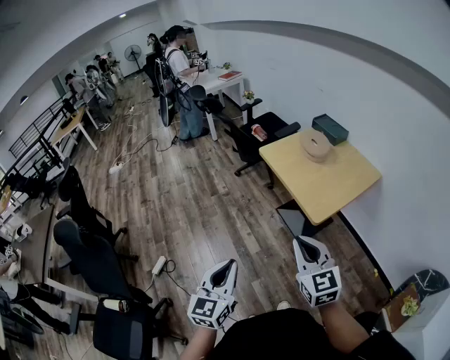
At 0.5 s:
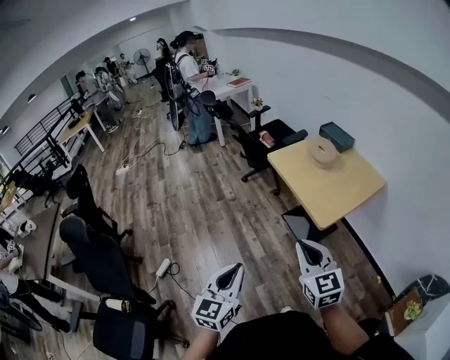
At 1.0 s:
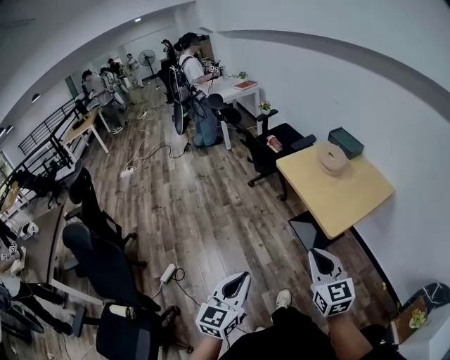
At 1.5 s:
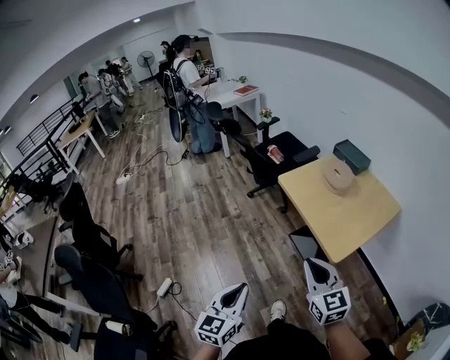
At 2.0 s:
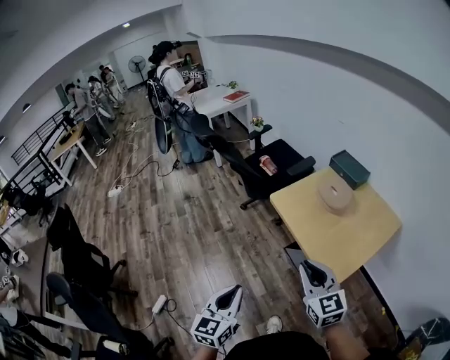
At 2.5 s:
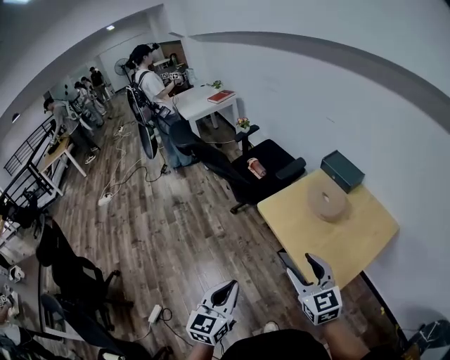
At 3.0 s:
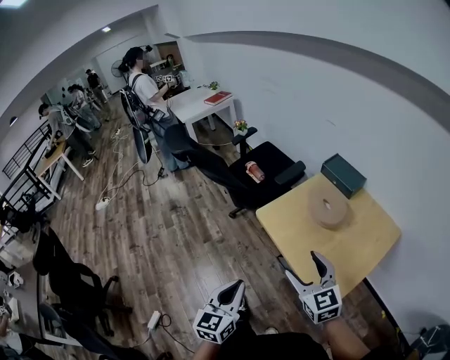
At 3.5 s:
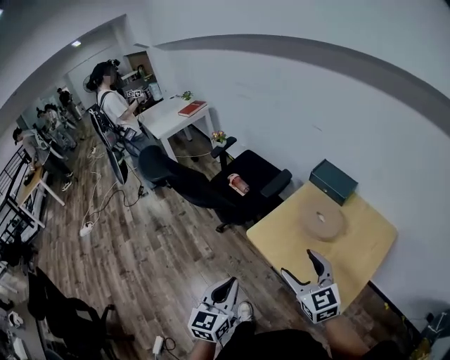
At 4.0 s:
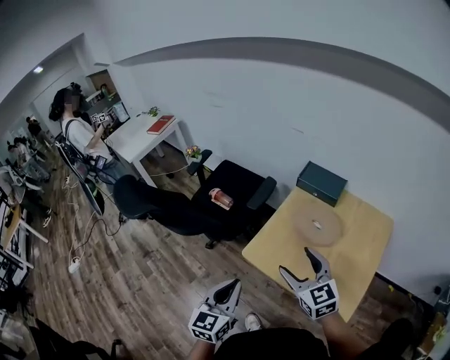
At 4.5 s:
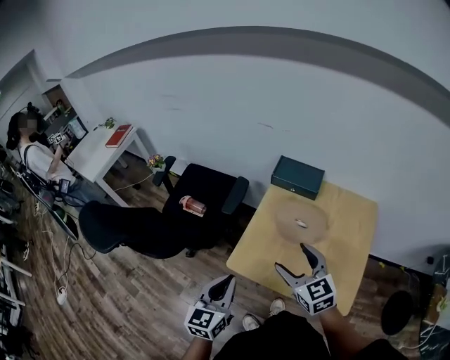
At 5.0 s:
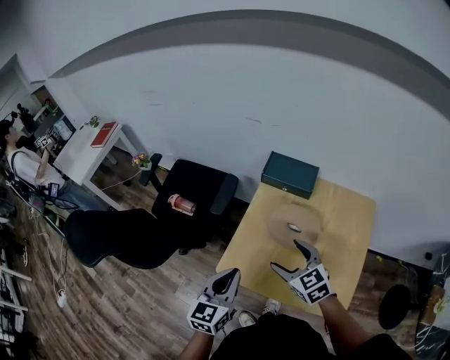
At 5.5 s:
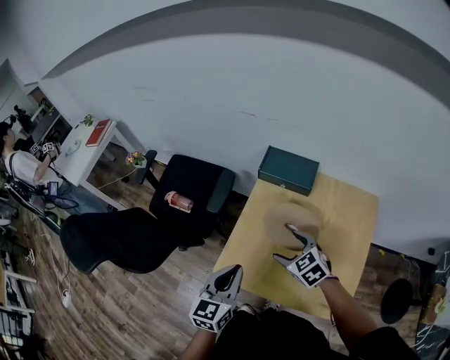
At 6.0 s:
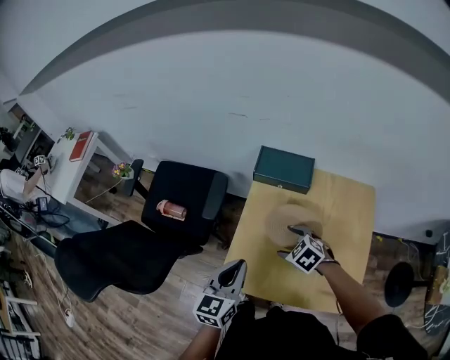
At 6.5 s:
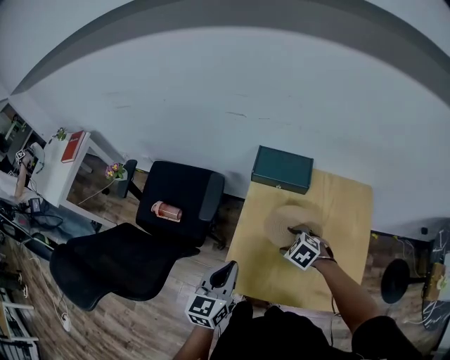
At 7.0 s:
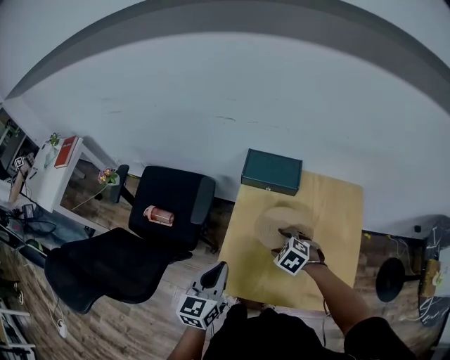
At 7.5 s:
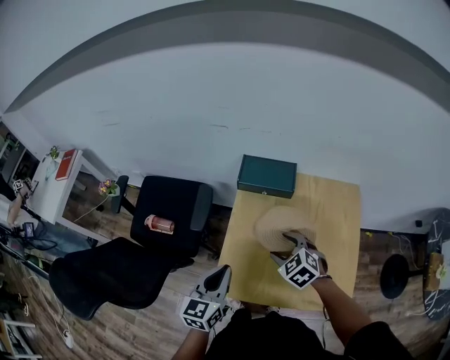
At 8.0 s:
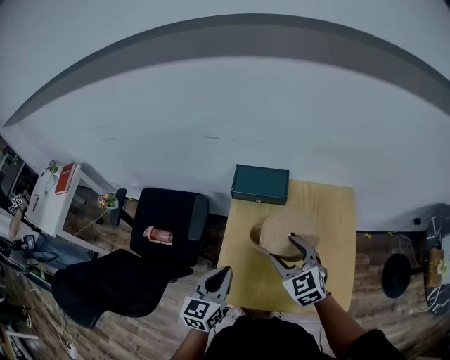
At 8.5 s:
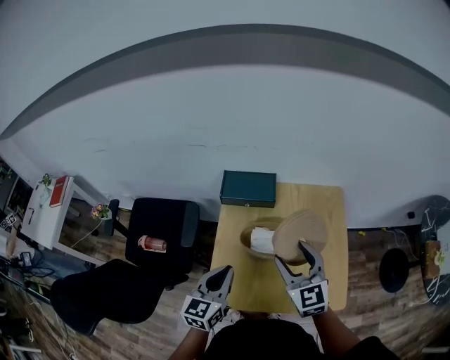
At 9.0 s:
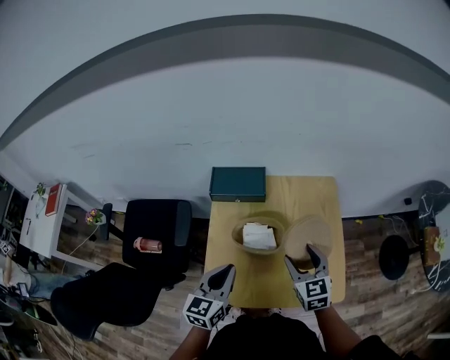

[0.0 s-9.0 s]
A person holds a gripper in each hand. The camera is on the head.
0.0 to 2.0 s: Both grippers travel together forward, about 25 cm.
2.0 to 4.5 s: The left gripper shifts by some 50 cm, and turns by approximately 40 degrees; the right gripper shifts by about 40 cm, rotates approximately 30 degrees, and opens.
4.5 to 7.0 s: The left gripper is displaced forward by about 15 cm. The right gripper is displaced downward and forward by some 25 cm, and tilts its fingers approximately 50 degrees downward.
7.0 to 9.0 s: The right gripper heads to the right and upward, covering some 20 cm, and points its fingers about 40 degrees further upward; the left gripper shifts approximately 10 cm to the right.

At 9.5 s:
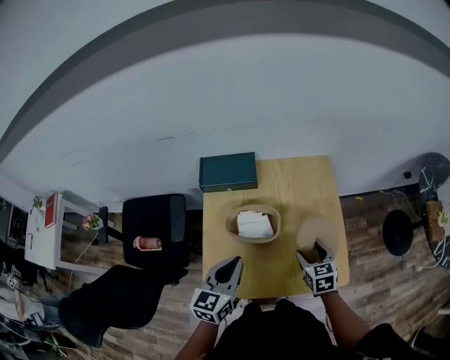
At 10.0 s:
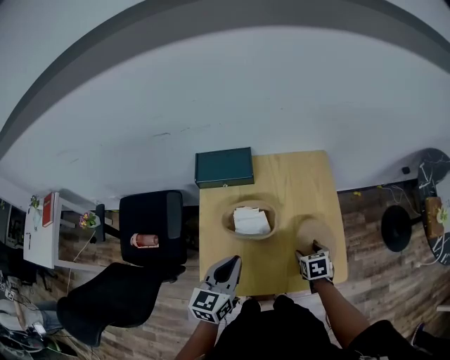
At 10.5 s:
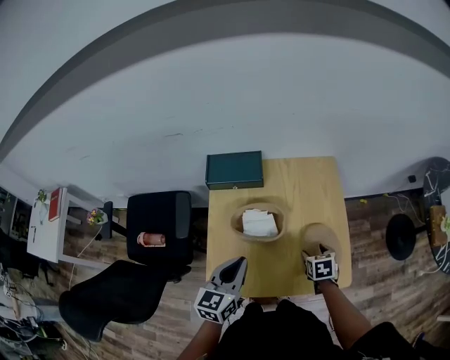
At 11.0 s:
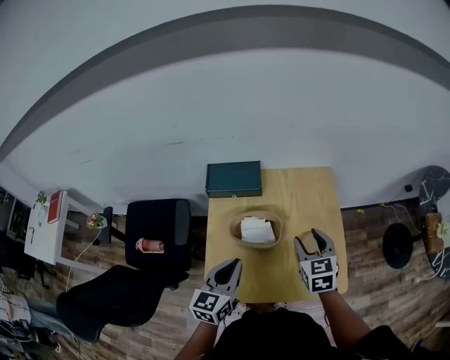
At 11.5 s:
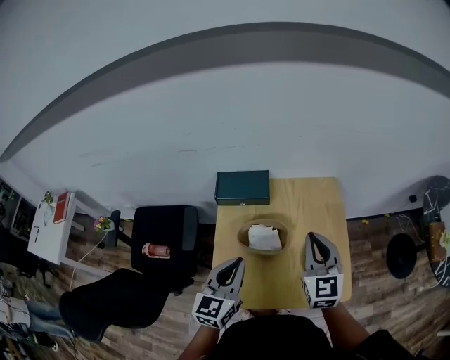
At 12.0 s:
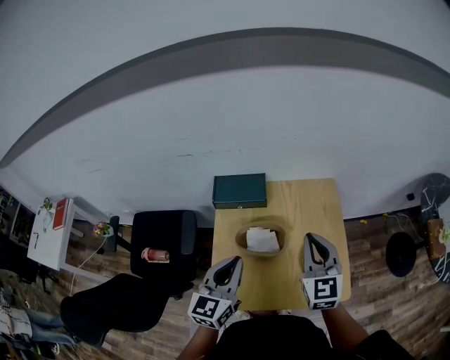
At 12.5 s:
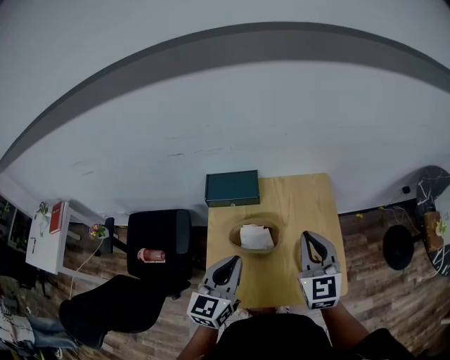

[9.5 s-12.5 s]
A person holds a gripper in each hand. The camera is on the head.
9.5 to 11.0 s: The right gripper moves upward, approximately 10 cm.
11.0 to 12.5 s: The left gripper shifts about 10 cm upward; the right gripper heads upward, covering some 10 cm, turns by roughly 20 degrees, and closes.

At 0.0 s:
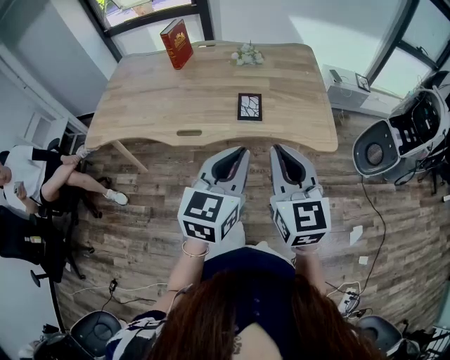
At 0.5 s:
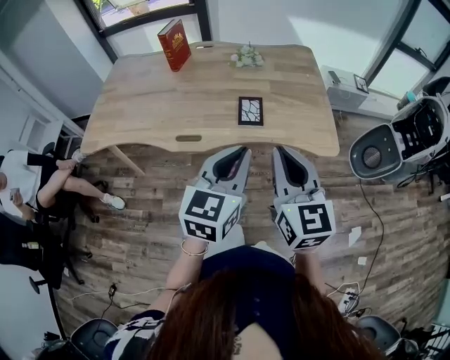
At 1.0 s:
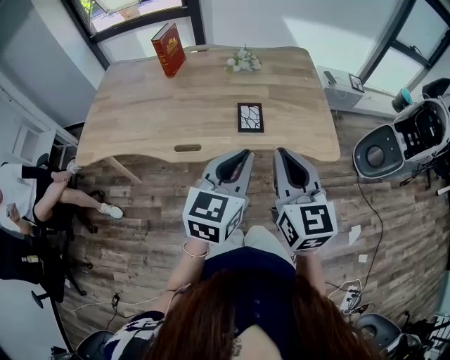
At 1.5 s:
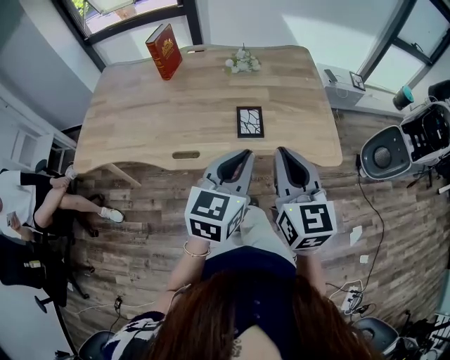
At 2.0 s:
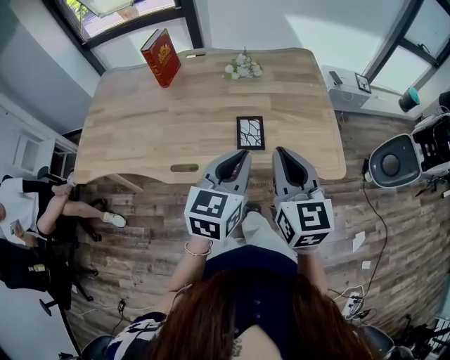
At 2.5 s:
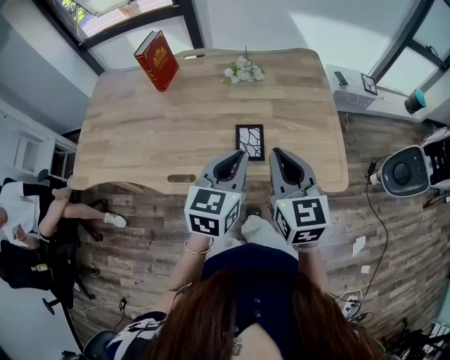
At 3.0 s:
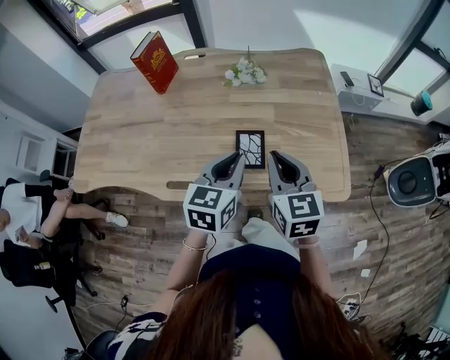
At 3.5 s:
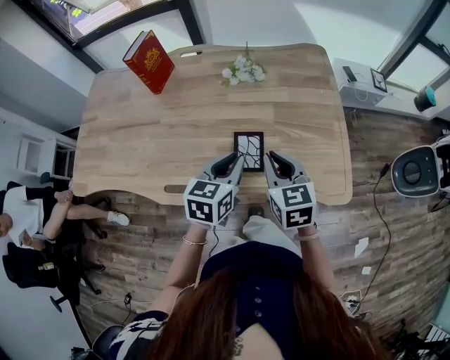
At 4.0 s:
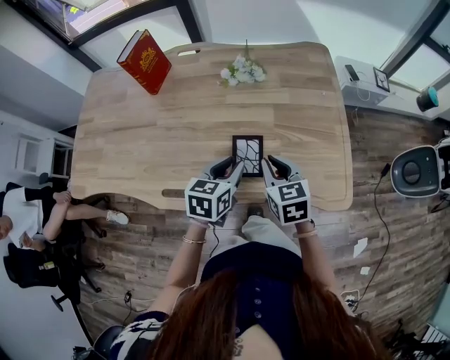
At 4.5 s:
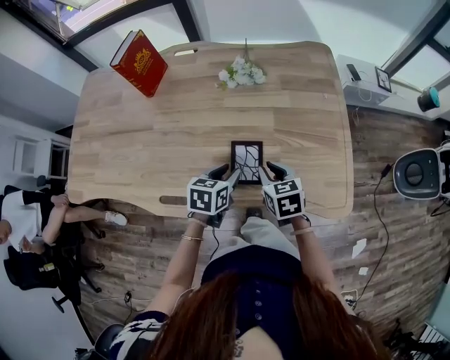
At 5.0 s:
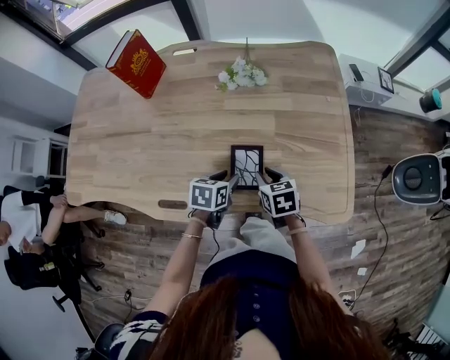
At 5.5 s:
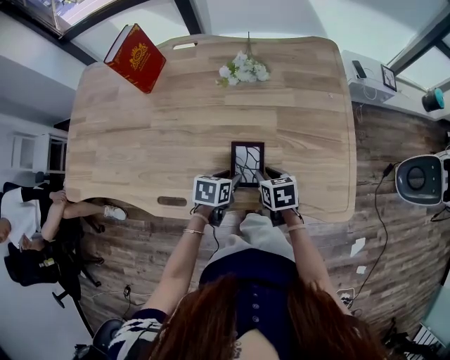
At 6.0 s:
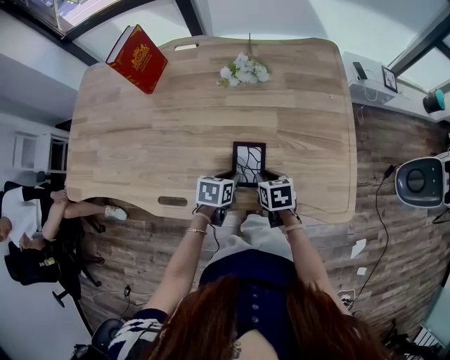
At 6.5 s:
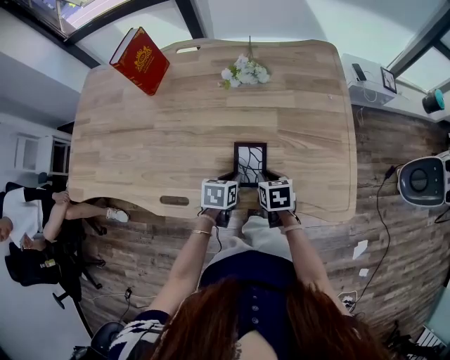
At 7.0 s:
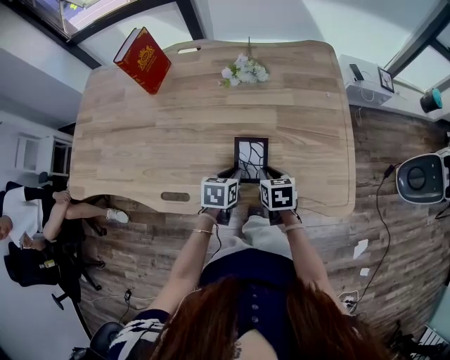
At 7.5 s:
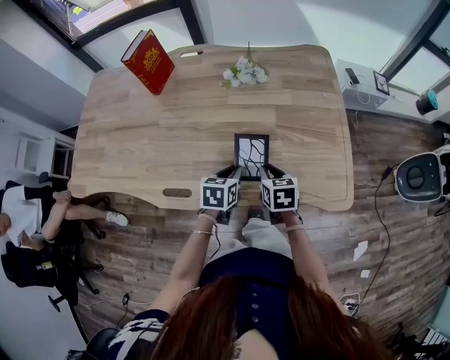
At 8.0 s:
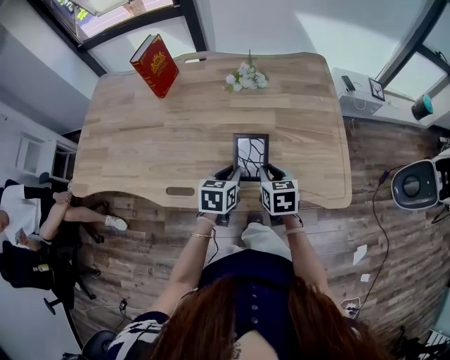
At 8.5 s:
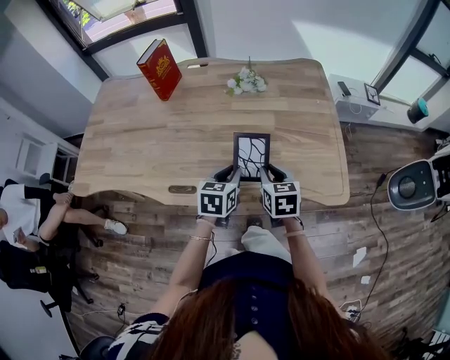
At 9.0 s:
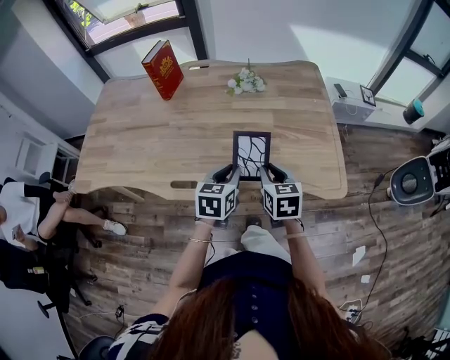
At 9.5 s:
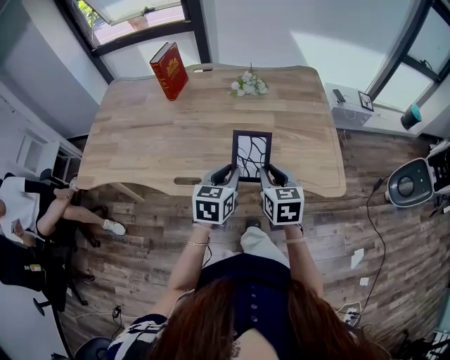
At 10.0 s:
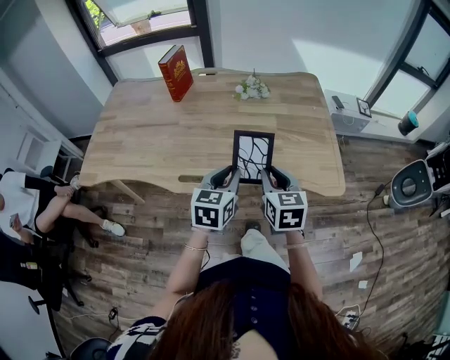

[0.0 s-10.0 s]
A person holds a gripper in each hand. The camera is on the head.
0.0 to 2.0 s: Both grippers travel together forward, roughly 15 cm.
2.0 to 4.0 s: The grippers both shift downward and forward by roughly 25 cm. The left gripper swivels approximately 20 degrees; the right gripper swivels roughly 30 degrees.
4.0 to 6.0 s: Both grippers move downward, about 15 cm. The right gripper turns by some 30 degrees; the left gripper turns by approximately 20 degrees.
6.0 to 8.0 s: The two grippers go some 10 cm upward.
8.0 to 10.0 s: The two grippers go approximately 20 cm upward and backward.

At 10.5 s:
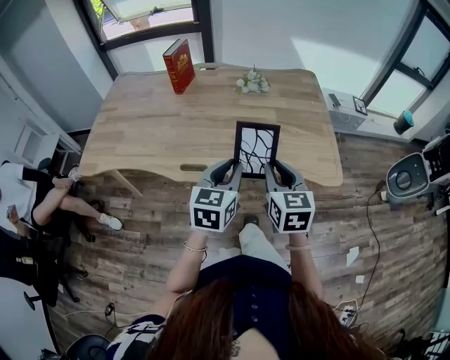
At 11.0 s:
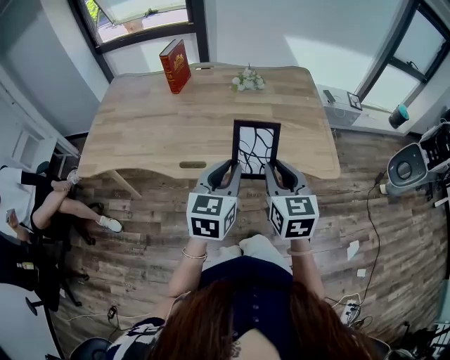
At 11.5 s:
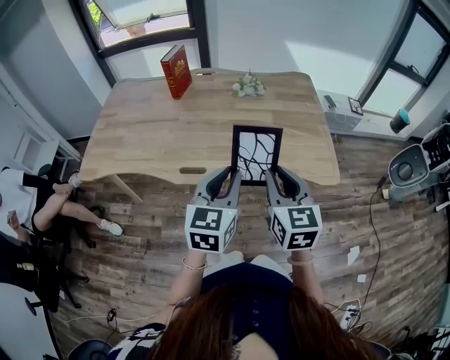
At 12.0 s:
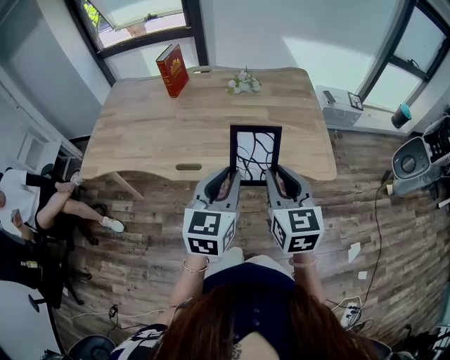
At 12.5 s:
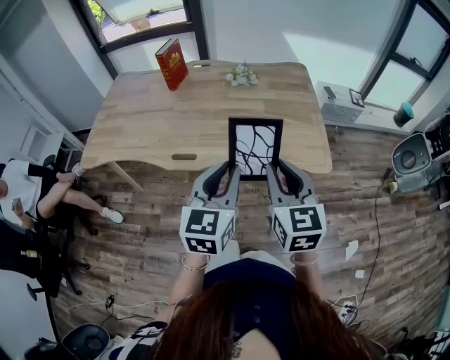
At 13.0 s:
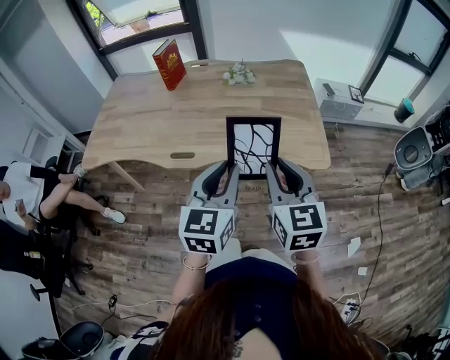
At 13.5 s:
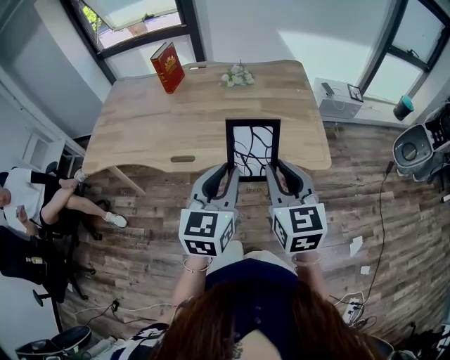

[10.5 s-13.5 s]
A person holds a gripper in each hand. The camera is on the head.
10.5 to 12.0 s: The grippers both shift upward and backward by roughly 10 cm.
12.0 to 13.5 s: The right gripper changes place by some 5 cm. Meanwhile the left gripper ends up about 5 cm from where it was.

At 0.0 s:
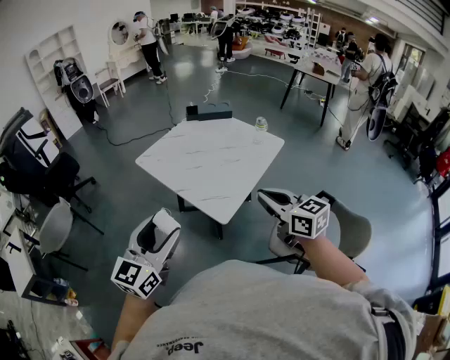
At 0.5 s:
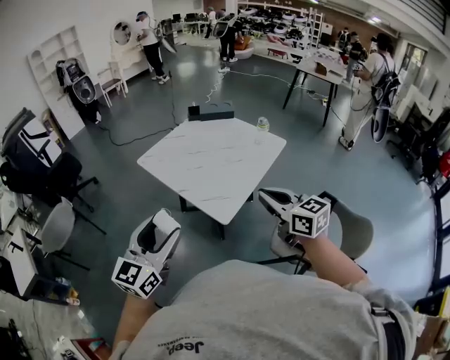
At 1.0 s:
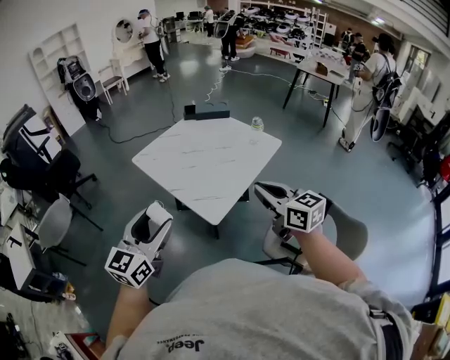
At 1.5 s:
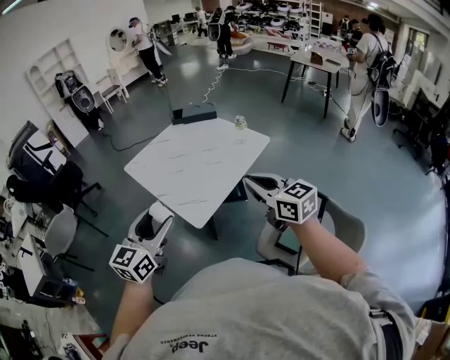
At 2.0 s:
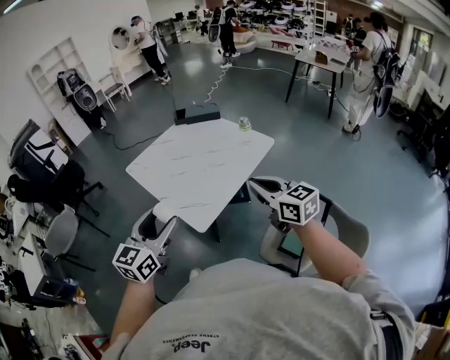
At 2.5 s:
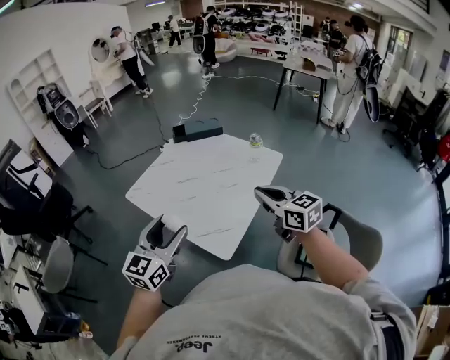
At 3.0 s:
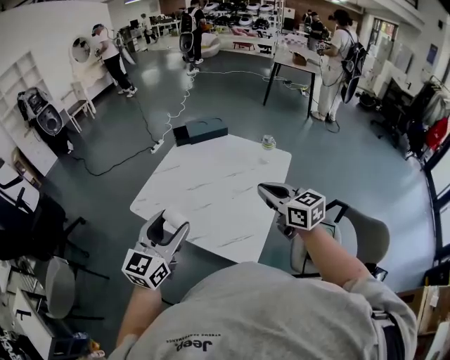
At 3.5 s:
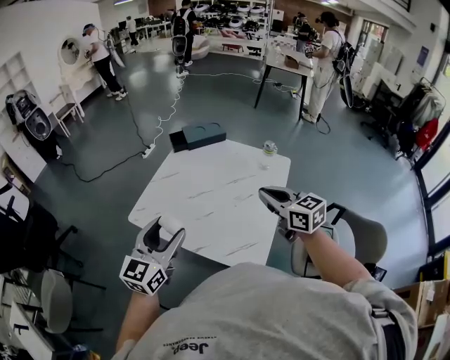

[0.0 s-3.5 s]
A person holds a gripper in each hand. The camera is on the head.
0.0 to 2.0 s: The two grippers go approximately 15 cm to the right and forward.
2.0 to 3.5 s: The grippers both shift forward and to the left by roughly 30 cm.
